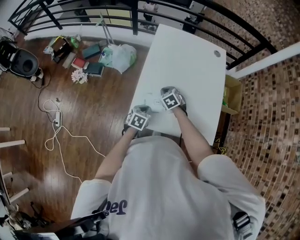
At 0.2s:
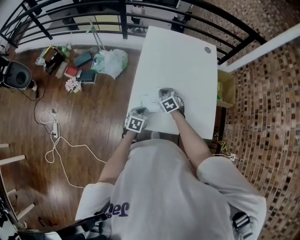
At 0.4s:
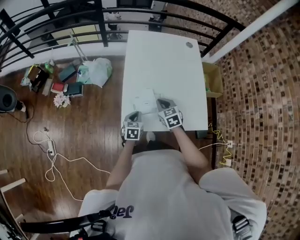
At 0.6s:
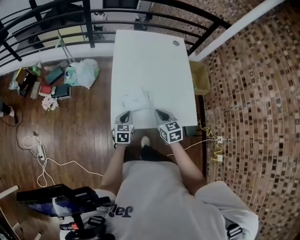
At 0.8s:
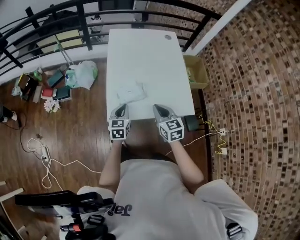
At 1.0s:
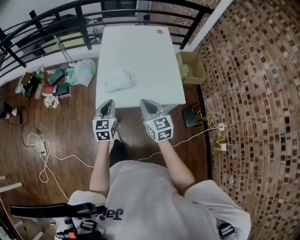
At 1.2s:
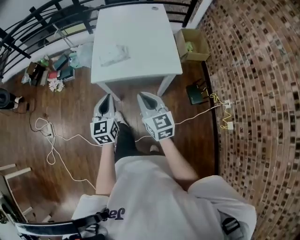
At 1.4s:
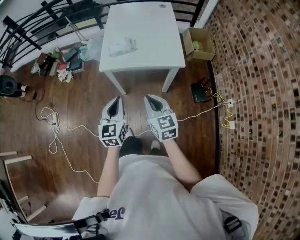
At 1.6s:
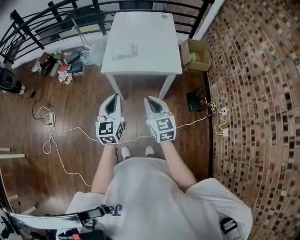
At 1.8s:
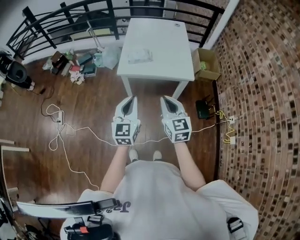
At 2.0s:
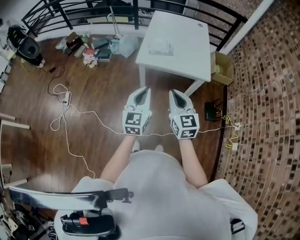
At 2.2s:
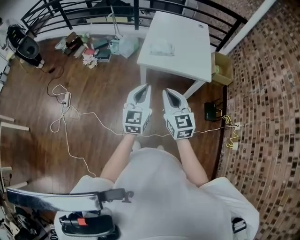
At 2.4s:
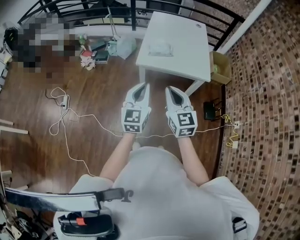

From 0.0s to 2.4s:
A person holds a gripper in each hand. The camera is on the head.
From 0.0s to 1.2s: Both grippers travel together backward and upward, some 40 cm. The right gripper points its fingers approximately 40 degrees further upward. The left gripper points its fingers some 40 degrees further upward.
From 1.2s to 2.4s: The right gripper travels to the left, backward and upward by roughly 20 cm. The left gripper is displaced backward, upward and to the left by approximately 20 cm.

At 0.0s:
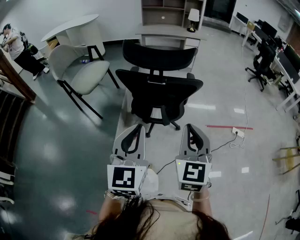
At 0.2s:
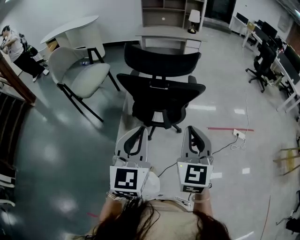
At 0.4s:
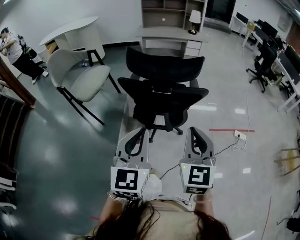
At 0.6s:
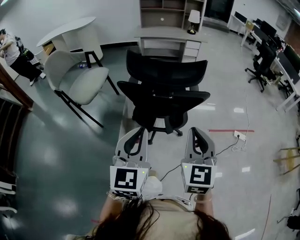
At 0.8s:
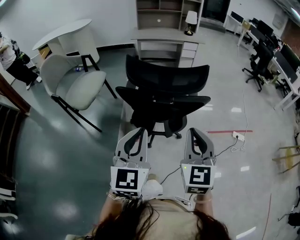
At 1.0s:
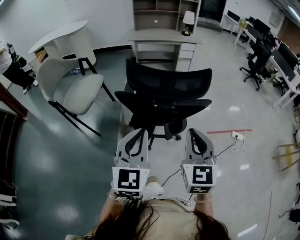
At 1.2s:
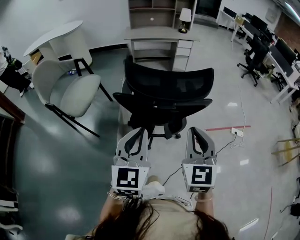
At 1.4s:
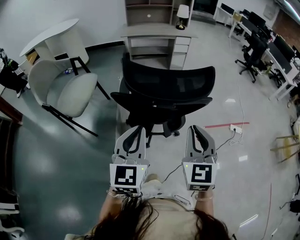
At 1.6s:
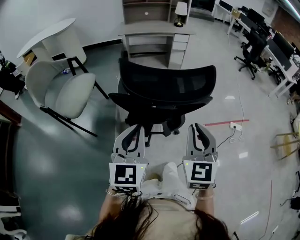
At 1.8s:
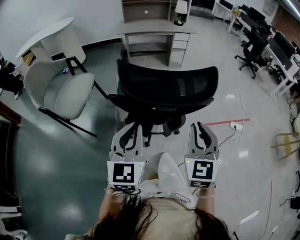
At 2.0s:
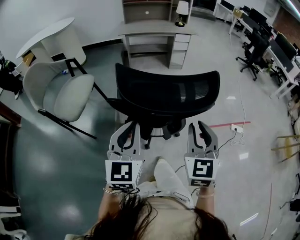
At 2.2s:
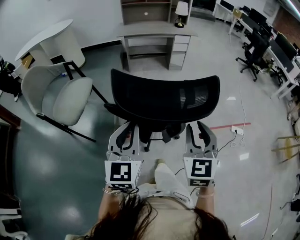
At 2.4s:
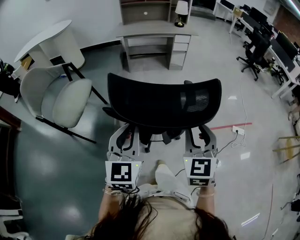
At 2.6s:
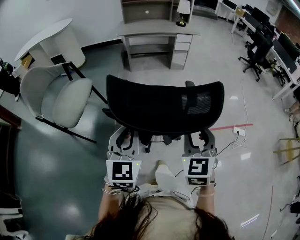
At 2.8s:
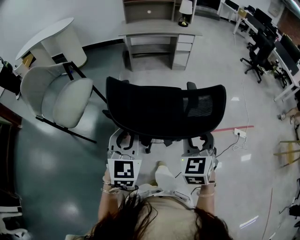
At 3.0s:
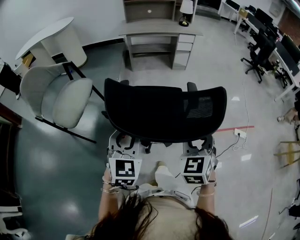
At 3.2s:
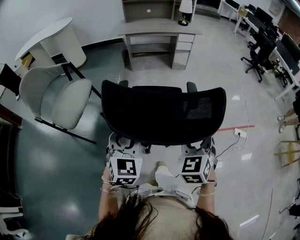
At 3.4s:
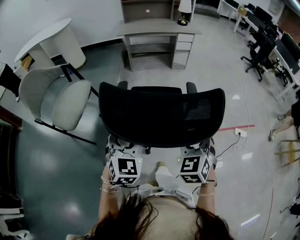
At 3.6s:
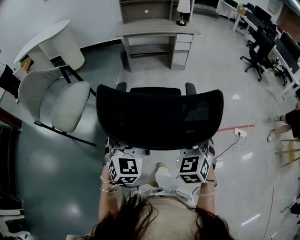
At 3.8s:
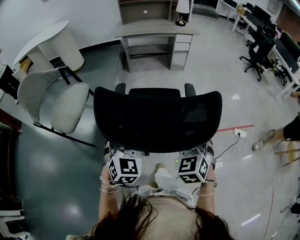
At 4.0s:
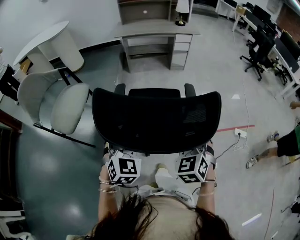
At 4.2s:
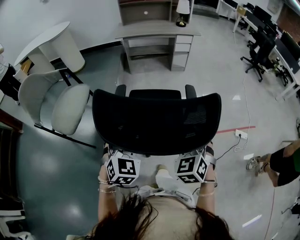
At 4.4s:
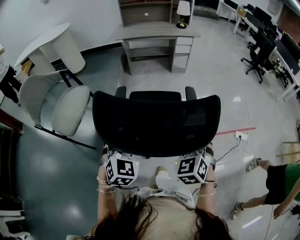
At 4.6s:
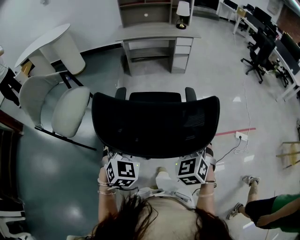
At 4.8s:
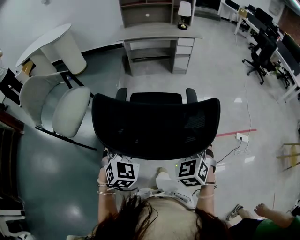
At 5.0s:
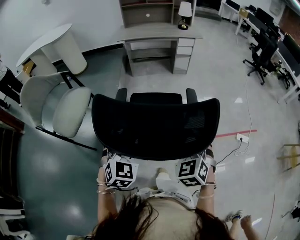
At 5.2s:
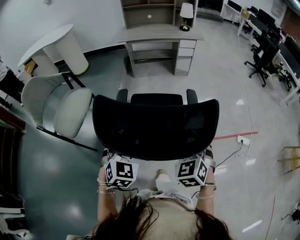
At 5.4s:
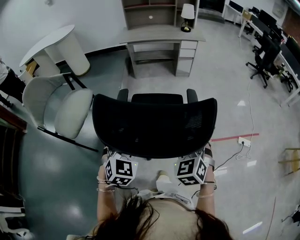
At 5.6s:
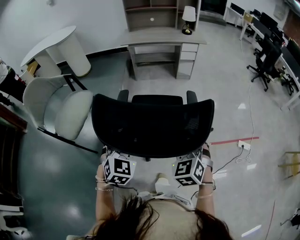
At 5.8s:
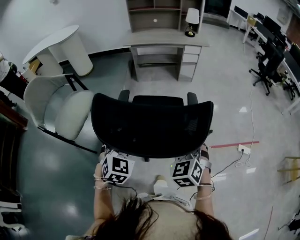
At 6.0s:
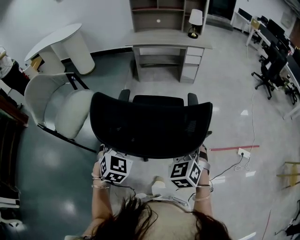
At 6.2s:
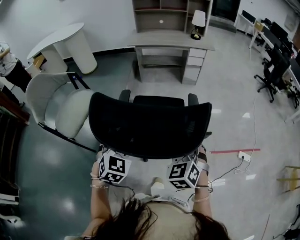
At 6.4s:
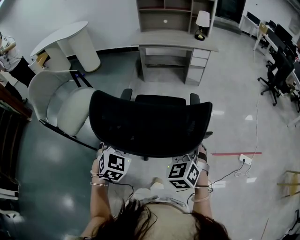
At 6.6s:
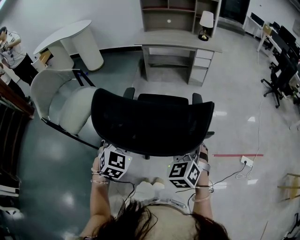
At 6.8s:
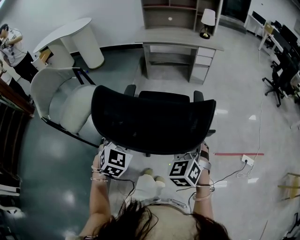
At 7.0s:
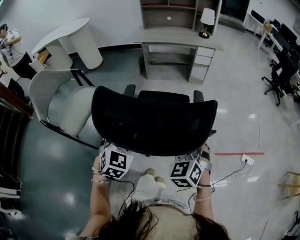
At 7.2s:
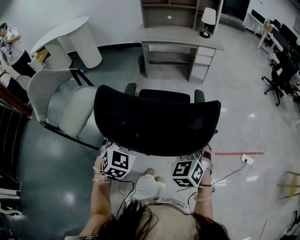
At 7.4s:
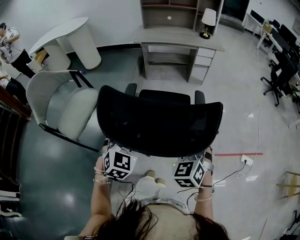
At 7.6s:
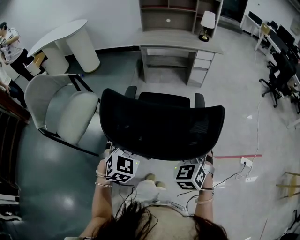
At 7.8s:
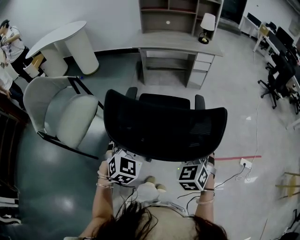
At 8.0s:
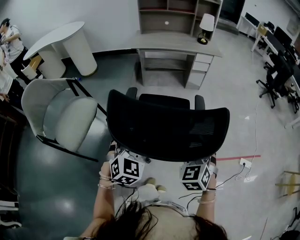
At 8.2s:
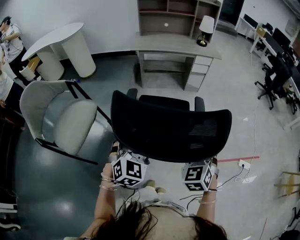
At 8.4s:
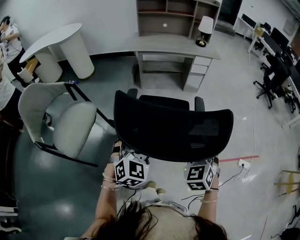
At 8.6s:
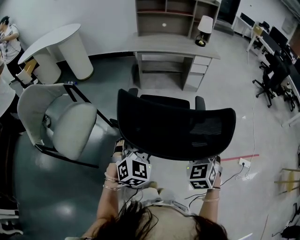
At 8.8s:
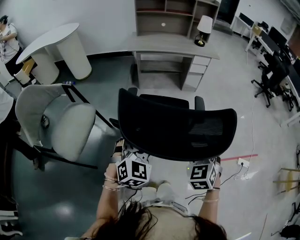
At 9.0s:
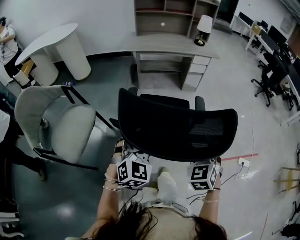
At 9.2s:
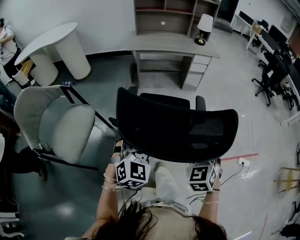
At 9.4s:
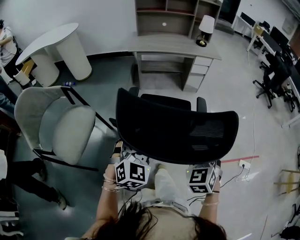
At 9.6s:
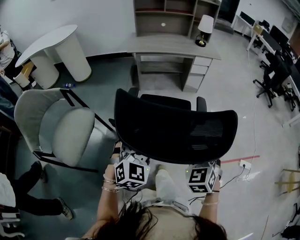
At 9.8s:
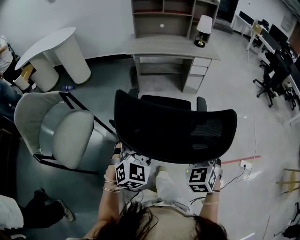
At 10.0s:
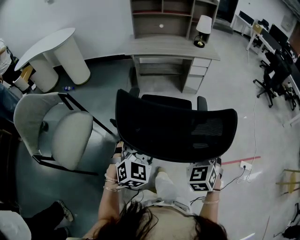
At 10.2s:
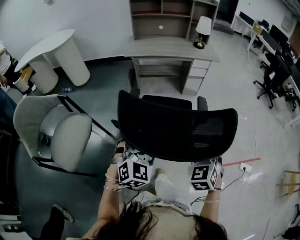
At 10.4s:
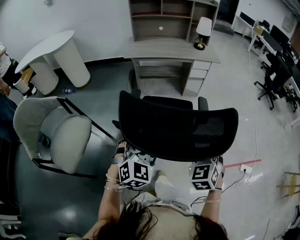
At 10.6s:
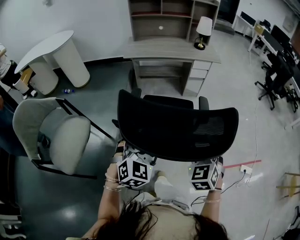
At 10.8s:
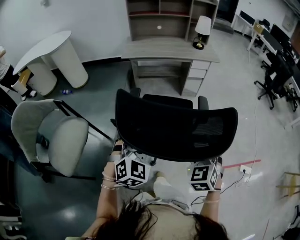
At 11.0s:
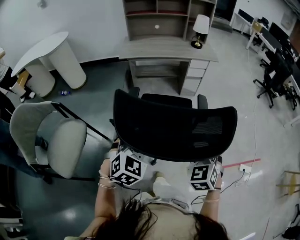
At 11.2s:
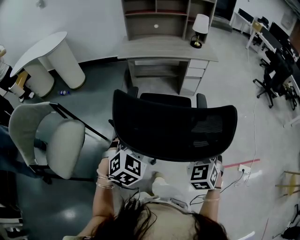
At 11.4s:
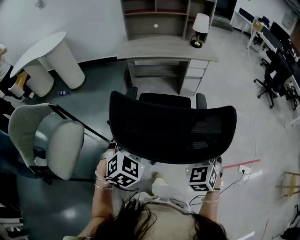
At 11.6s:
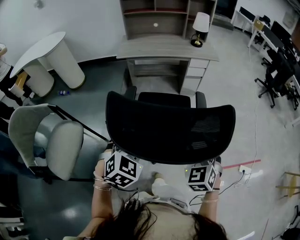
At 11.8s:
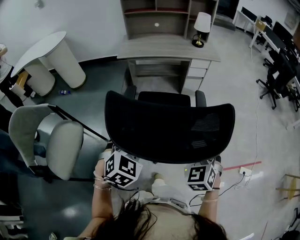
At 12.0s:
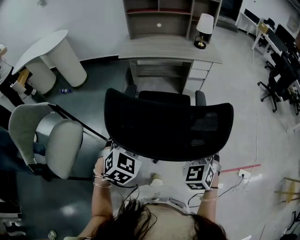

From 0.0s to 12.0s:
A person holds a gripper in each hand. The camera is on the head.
From 0.0s to 1.6s: The left gripper heads forward and to the left, covering some 20 cm; the right gripper moves forward, about 15 cm.
From 1.6s to 3.0s: Both grippers travel together forward and downward, about 15 cm. The right gripper opens its fingers.
From 3.0s to 4.4s: The left gripper opens.
From 4.4s to 6.0s: Both grippers move forward, approximately 5 cm.
From 6.0s to 7.6s: Both grippers move forward, about 10 cm.
From 7.6s to 9.0s: The grippers both shift forward by about 5 cm.
From 9.0s to 10.4s: Both grippers move forward, some 10 cm.
From 10.4s to 12.0s: Both grippers travel together forward, about 10 cm.

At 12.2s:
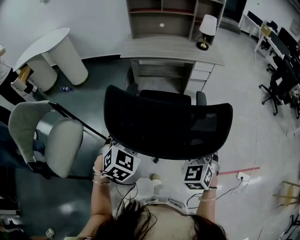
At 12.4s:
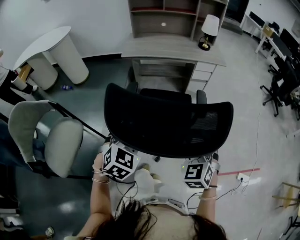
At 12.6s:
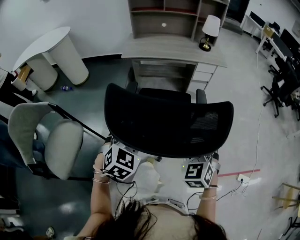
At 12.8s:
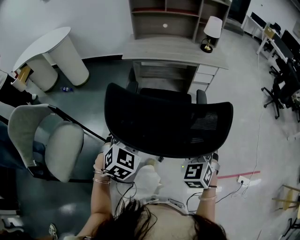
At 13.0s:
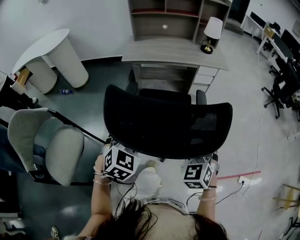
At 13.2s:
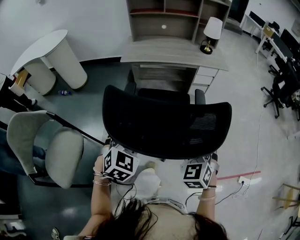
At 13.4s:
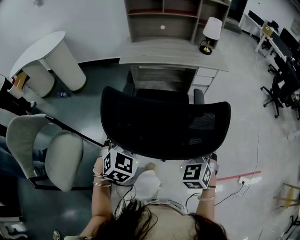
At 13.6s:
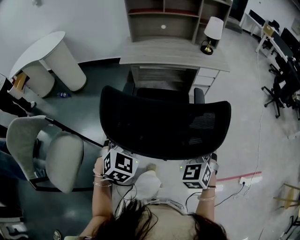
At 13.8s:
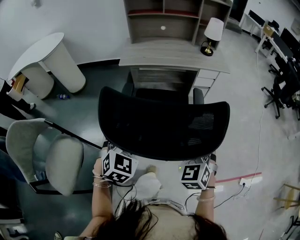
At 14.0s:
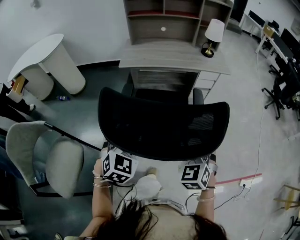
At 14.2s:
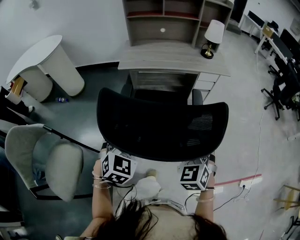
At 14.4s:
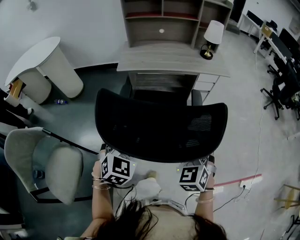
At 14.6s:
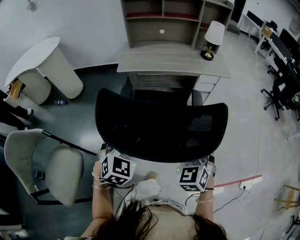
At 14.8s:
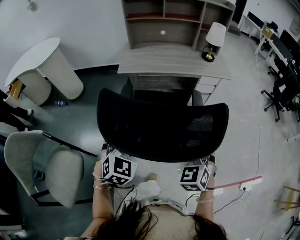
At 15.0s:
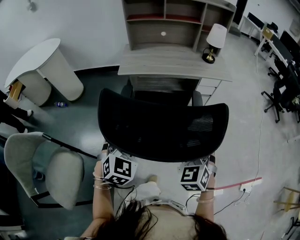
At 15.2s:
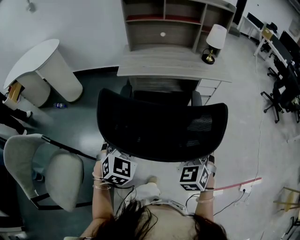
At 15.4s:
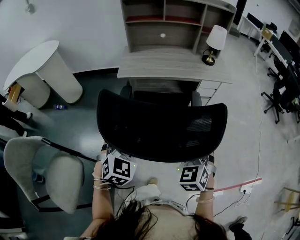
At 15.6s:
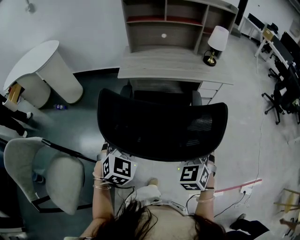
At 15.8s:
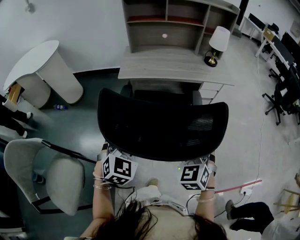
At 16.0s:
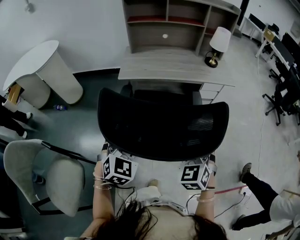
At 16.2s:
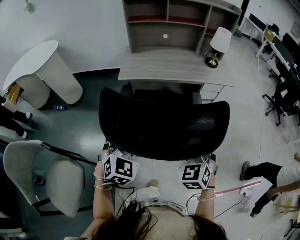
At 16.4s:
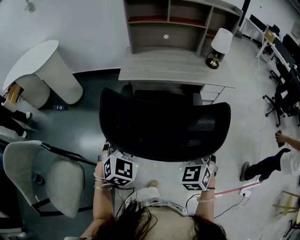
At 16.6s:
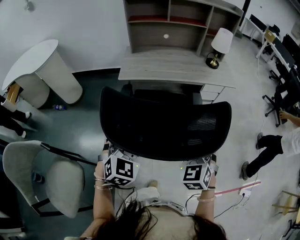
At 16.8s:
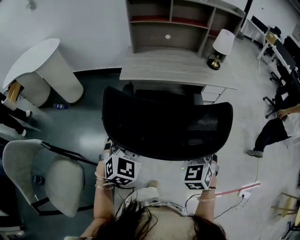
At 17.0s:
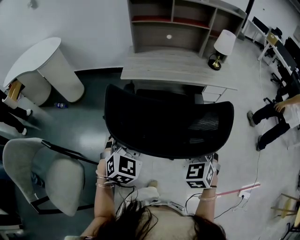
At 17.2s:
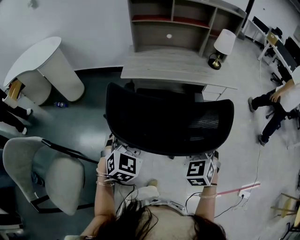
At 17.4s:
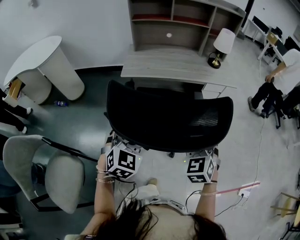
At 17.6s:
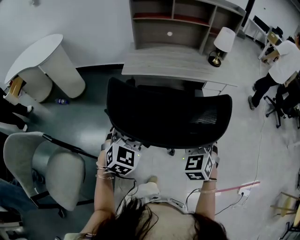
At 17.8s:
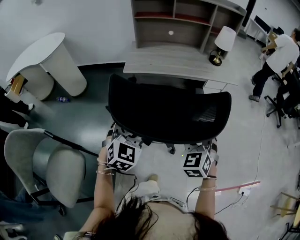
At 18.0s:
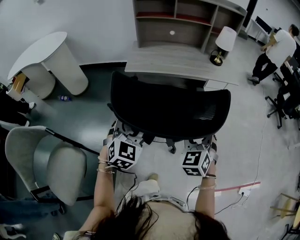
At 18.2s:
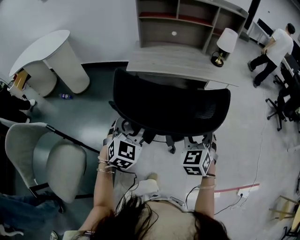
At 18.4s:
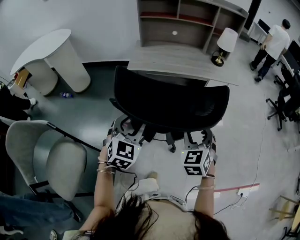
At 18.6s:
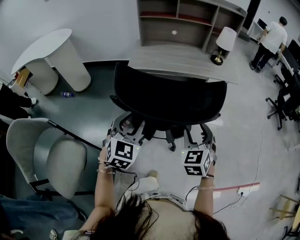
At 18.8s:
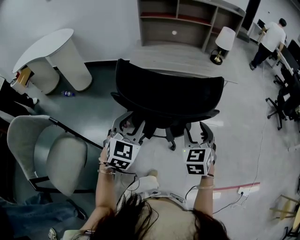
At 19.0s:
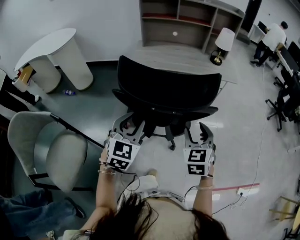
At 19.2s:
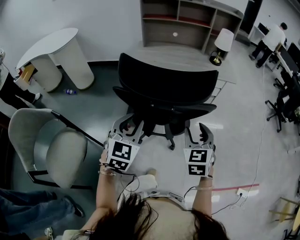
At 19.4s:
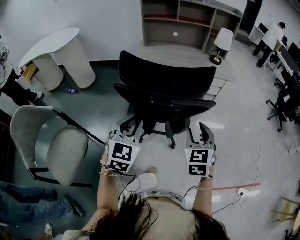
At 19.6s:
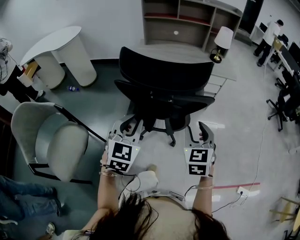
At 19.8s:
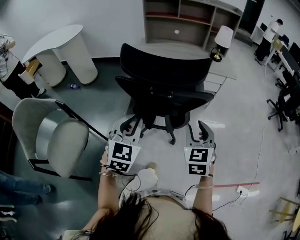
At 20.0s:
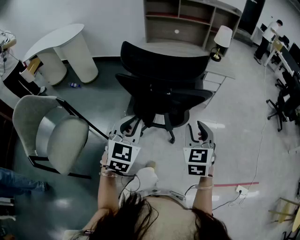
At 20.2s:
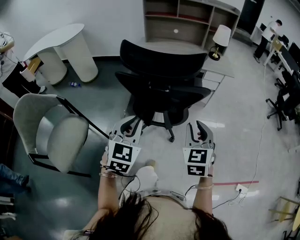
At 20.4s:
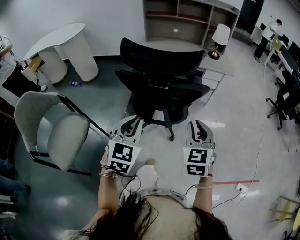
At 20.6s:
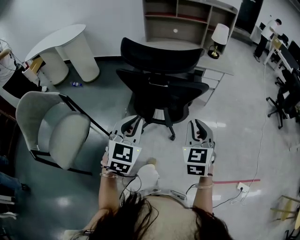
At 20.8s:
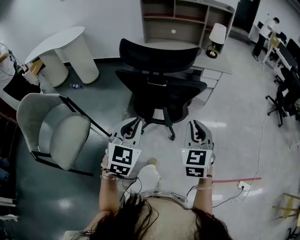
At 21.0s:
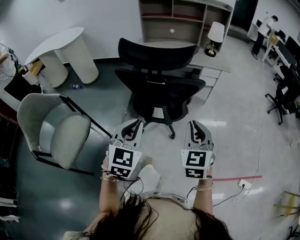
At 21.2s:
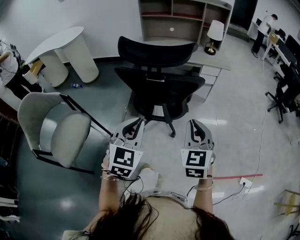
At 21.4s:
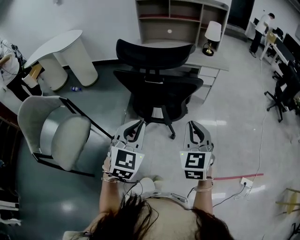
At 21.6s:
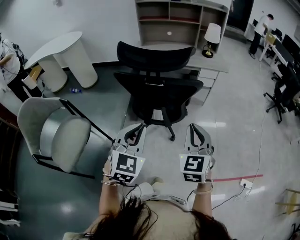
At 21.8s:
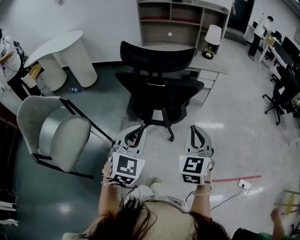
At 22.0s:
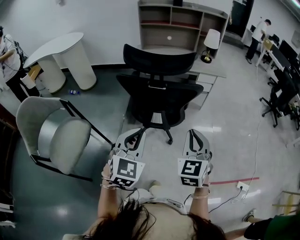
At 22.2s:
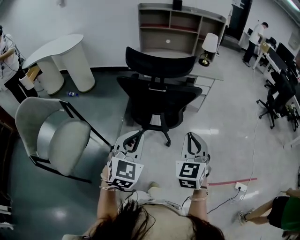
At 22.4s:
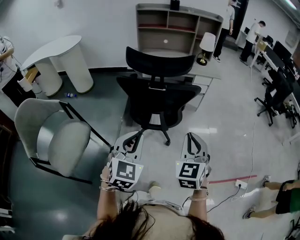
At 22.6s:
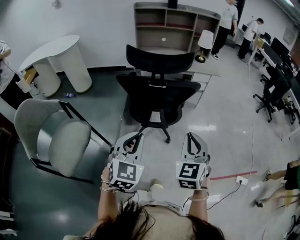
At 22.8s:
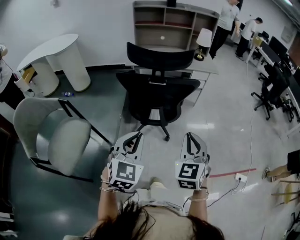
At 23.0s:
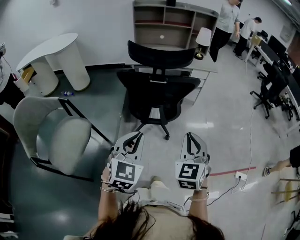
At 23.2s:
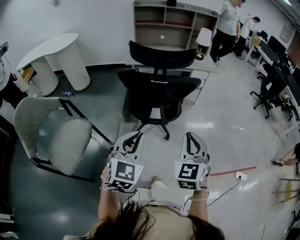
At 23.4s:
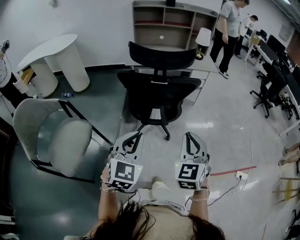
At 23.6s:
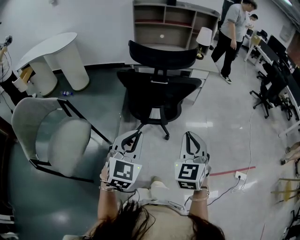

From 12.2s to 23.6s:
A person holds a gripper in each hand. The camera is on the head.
From 12.2s to 13.6s: Both grippers travel together forward, some 10 cm.
From 13.6s to 15.0s: The two grippers go approximately 10 cm forward.
From 15.0s to 16.4s: Both grippers travel together forward, some 5 cm.
From 16.4s to 17.8s: Neither gripper changes place.
From 17.8s to 19.4s: The two grippers go approximately 10 cm backward. The left gripper closes up.
From 19.4s to 20.8s: Both grippers travel together backward, about 10 cm. The right gripper closes up.
From 20.8s to 22.2s: The two grippers go roughly 5 cm backward.
From 22.2s to 23.6s: The right gripper travels backward by about 5 cm, while the left gripper changes place by some 5 cm.
